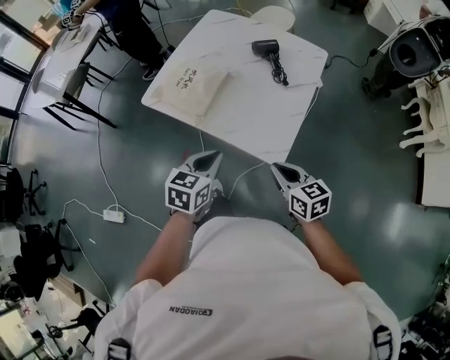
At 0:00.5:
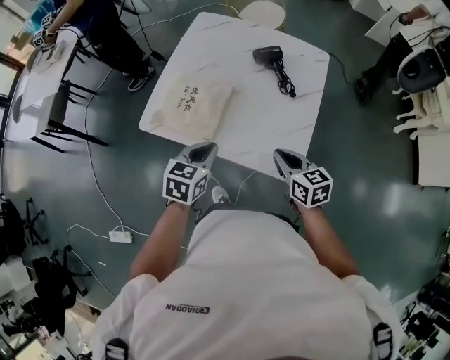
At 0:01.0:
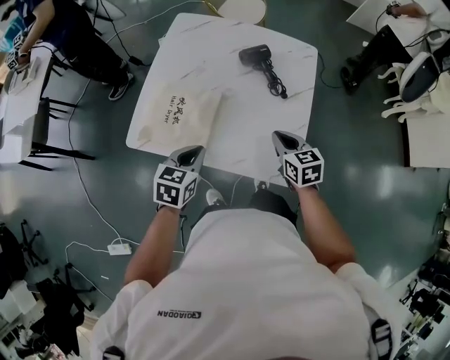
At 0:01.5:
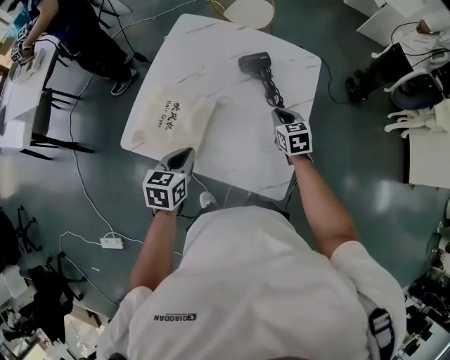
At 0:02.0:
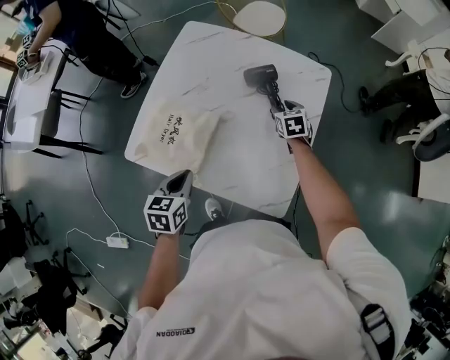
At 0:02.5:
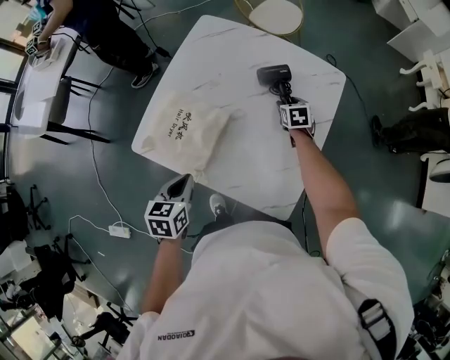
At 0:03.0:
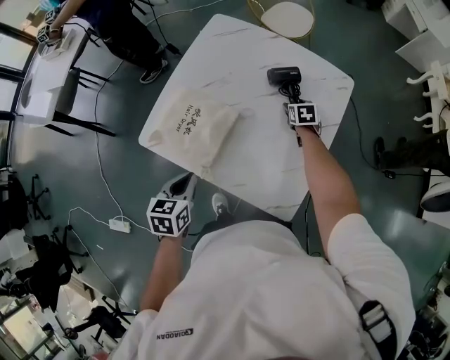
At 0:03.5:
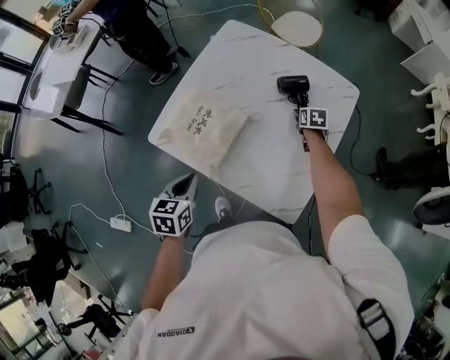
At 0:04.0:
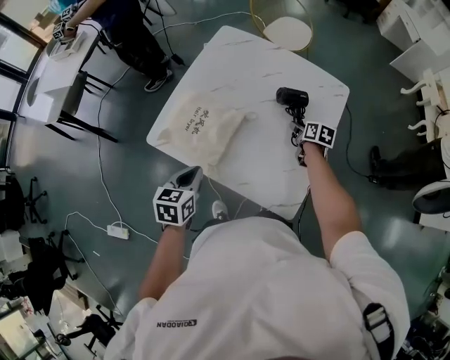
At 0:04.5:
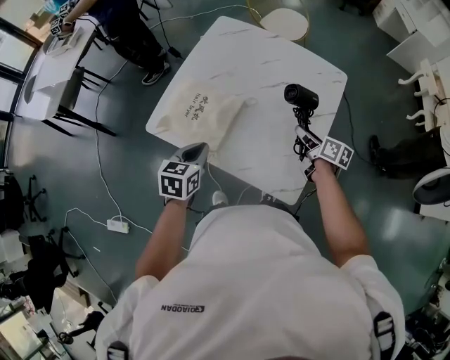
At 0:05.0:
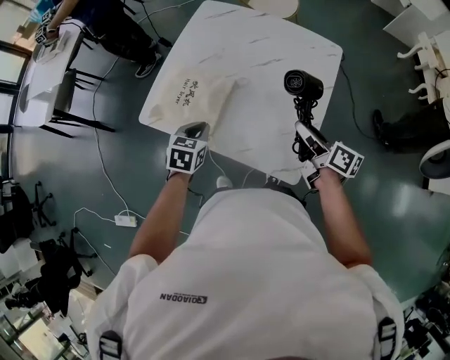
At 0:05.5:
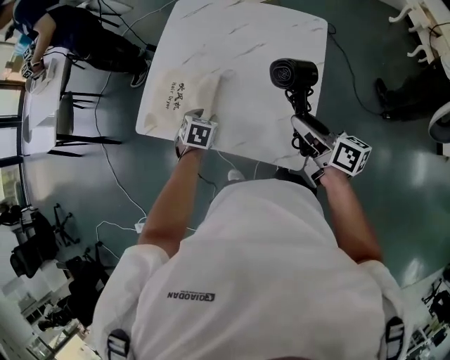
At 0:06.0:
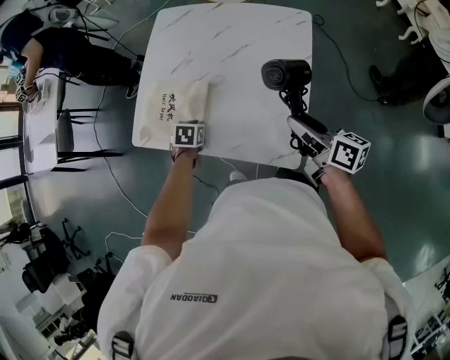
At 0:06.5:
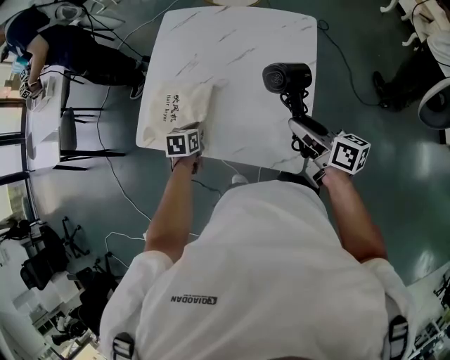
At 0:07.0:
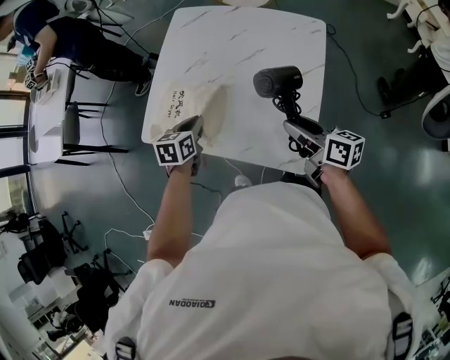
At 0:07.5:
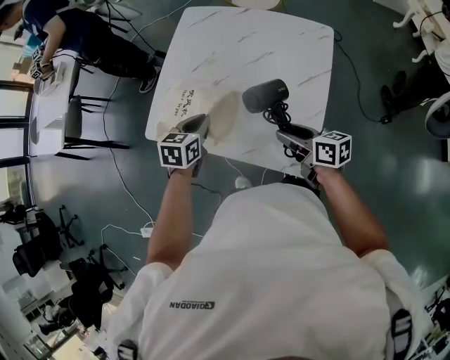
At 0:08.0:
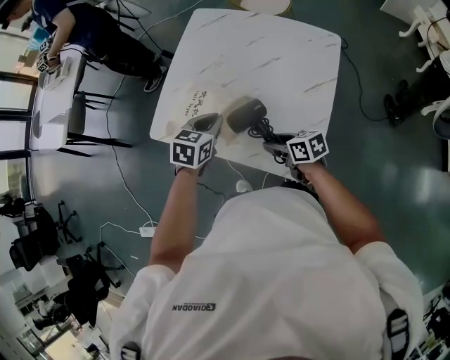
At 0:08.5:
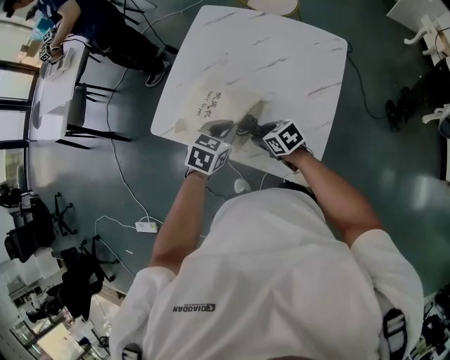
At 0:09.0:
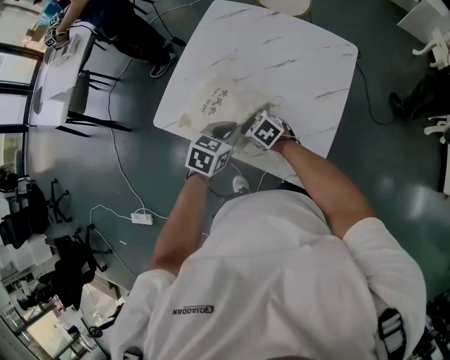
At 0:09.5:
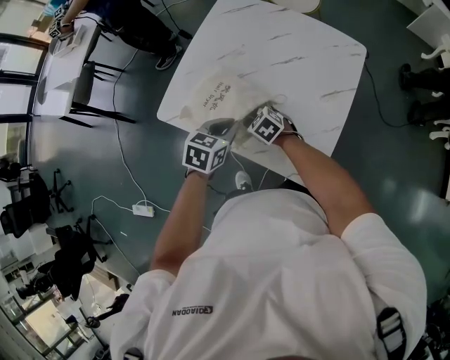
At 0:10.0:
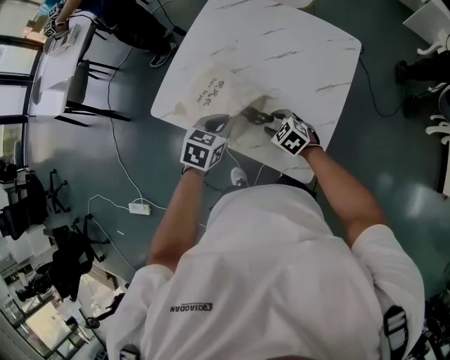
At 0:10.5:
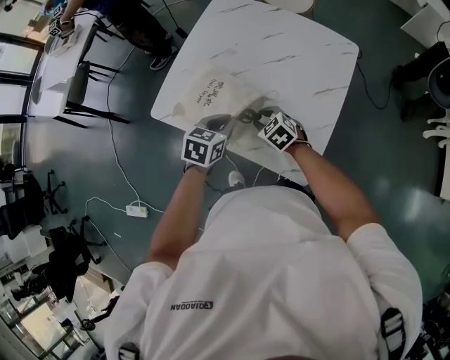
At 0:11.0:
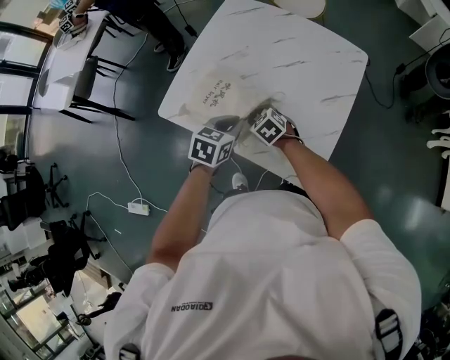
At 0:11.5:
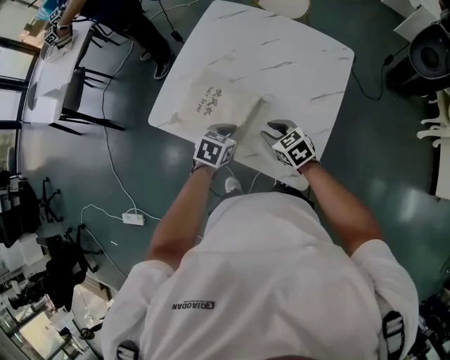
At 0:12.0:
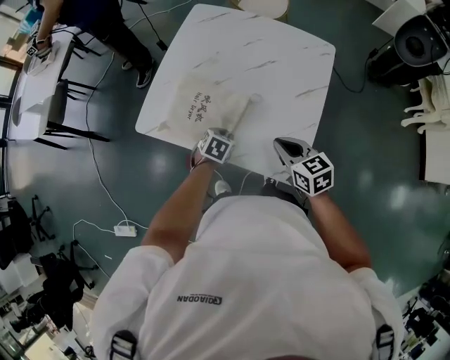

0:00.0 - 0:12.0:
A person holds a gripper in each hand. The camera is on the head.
0:00.0 - 0:02.0: The right gripper moves forward, some 50 cm, swivels roughly 30 degrees, and opens its fingers. The left gripper shifts roughly 25 cm forward and to the left.
0:02.0 - 0:04.0: The right gripper moves approximately 5 cm, and turns by some 30 degrees; the left gripper moves about 5 cm.
0:04.0 - 0:06.0: The left gripper goes approximately 20 cm downward and forward, and changes its angle by roughly 30 degrees. The right gripper heads backward and upward, covering approximately 30 cm, and angles its fingers upward, by some 30 degrees.
0:06.0 - 0:08.0: The left gripper goes some 15 cm upward, and rotates some 20 degrees. The right gripper goes roughly 20 cm downward and to the left, and swivels about 40 degrees.
0:08.0 - 0:10.0: The right gripper shifts some 5 cm downward, and rotates around the line of its fingers by roughly 50 degrees, counterclockwise from behind.
0:10.0 - 0:12.0: The right gripper heads upward and backward, covering about 15 cm, changes its angle by approximately 40 degrees, and closes its fingers. The left gripper travels downward by roughly 15 cm.

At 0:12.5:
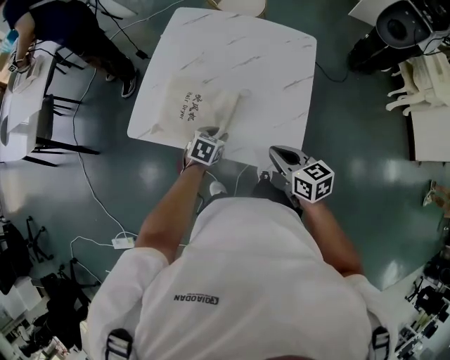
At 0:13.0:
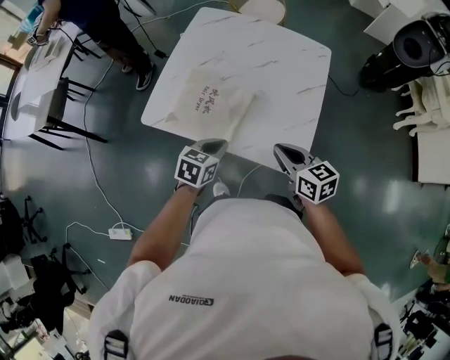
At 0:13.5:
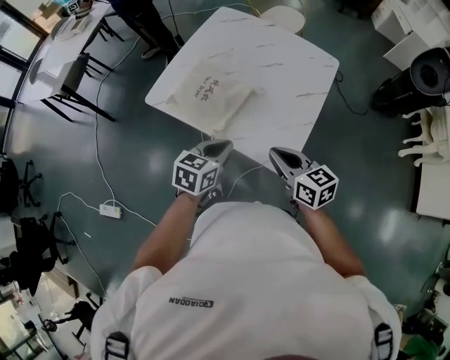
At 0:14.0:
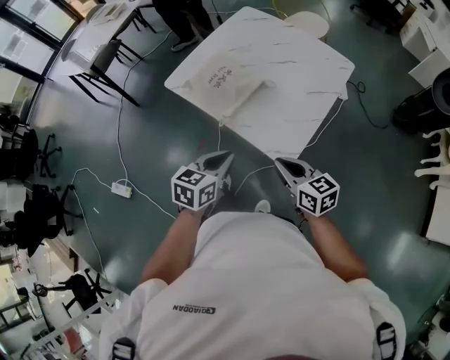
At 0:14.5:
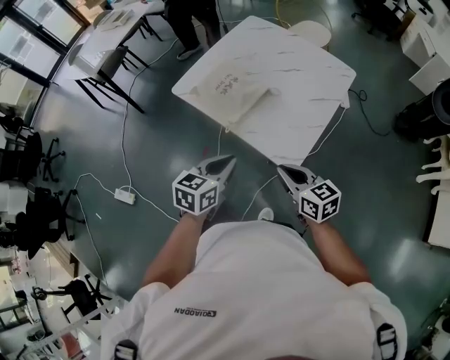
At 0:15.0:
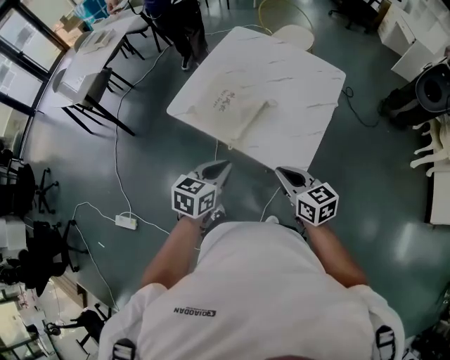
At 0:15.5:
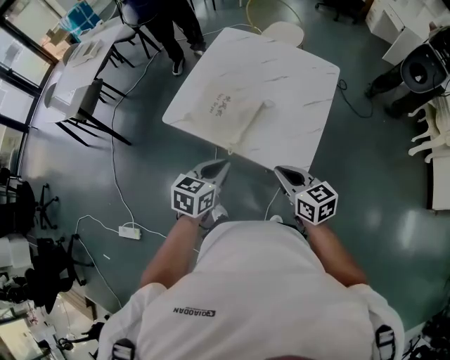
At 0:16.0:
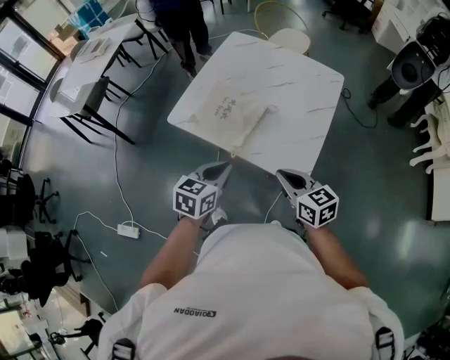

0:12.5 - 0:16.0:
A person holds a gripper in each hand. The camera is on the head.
0:12.5 - 0:14.5: The left gripper shifts approximately 30 cm backward and upward, swivels approximately 40 degrees, and closes its fingers; the right gripper goes roughly 15 cm backward, and rotates roughly 20 degrees.
0:14.5 - 0:16.0: The right gripper shifts approximately 5 cm to the left, while the left gripper travels forward and to the left by some 10 cm.

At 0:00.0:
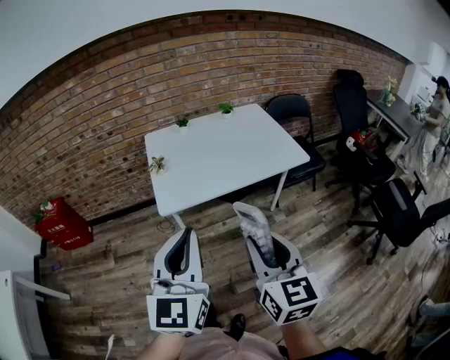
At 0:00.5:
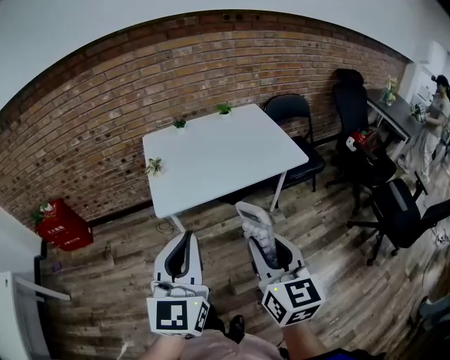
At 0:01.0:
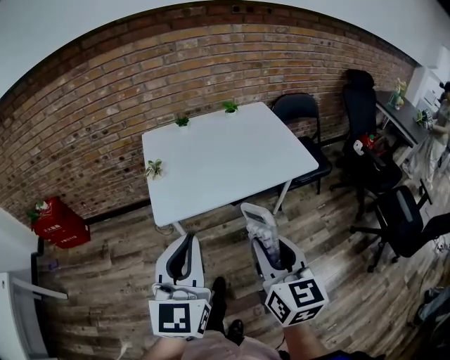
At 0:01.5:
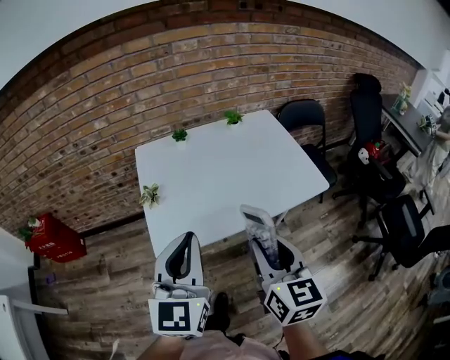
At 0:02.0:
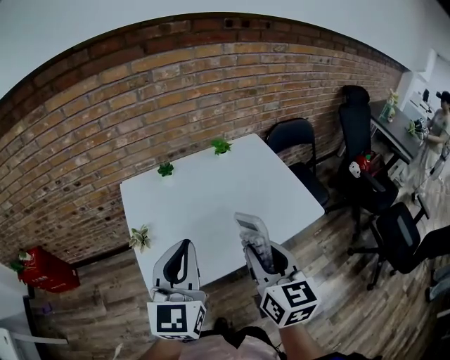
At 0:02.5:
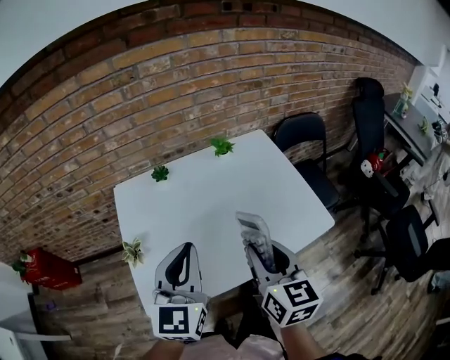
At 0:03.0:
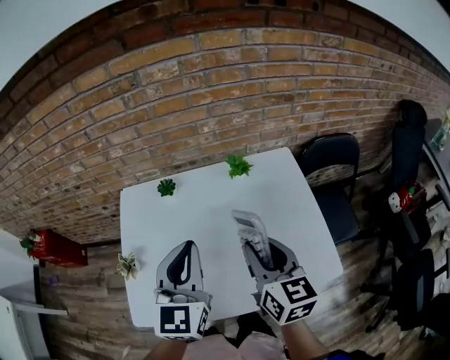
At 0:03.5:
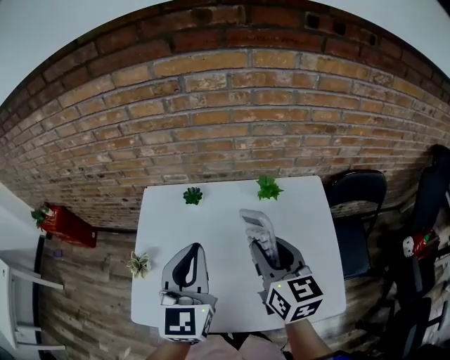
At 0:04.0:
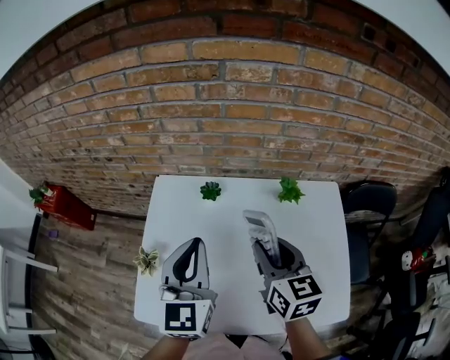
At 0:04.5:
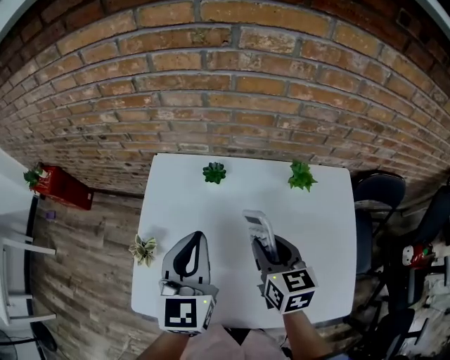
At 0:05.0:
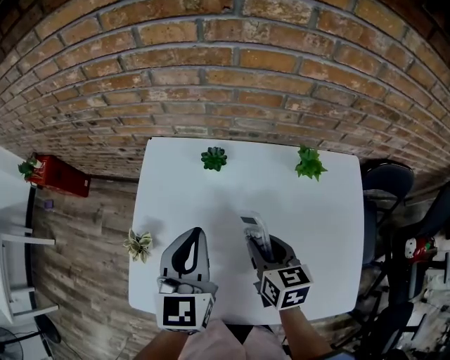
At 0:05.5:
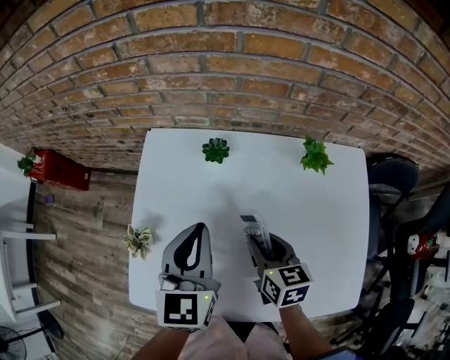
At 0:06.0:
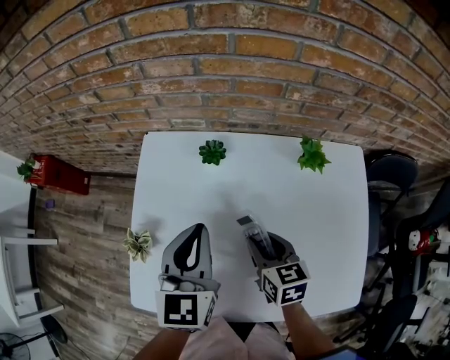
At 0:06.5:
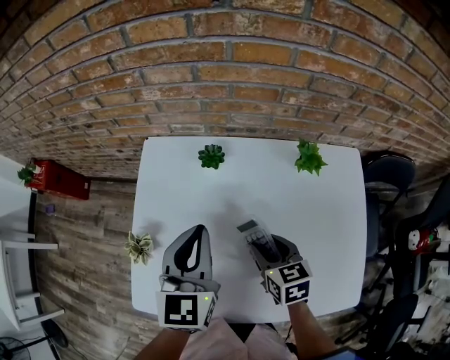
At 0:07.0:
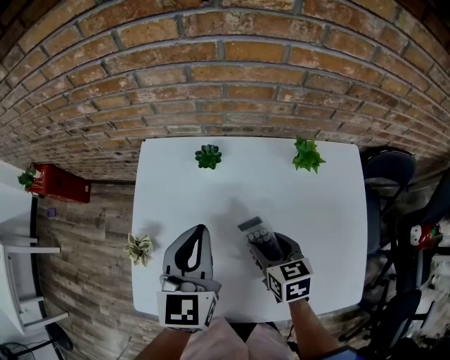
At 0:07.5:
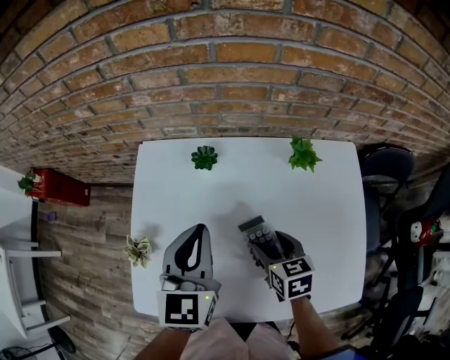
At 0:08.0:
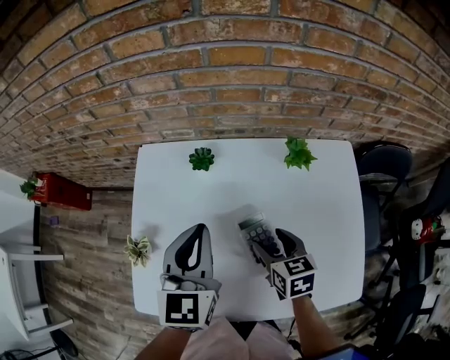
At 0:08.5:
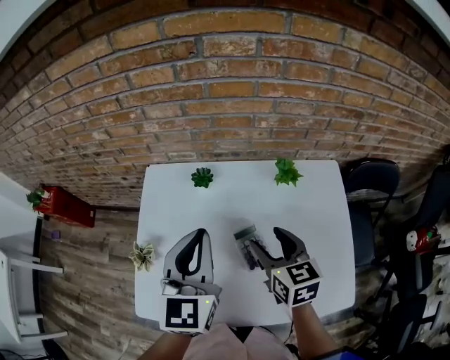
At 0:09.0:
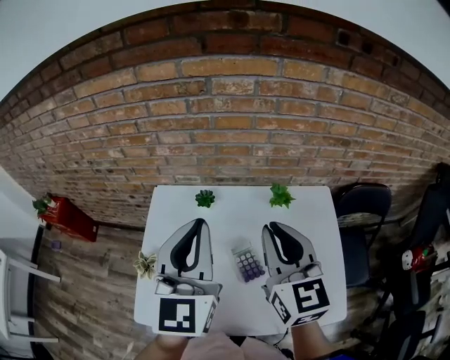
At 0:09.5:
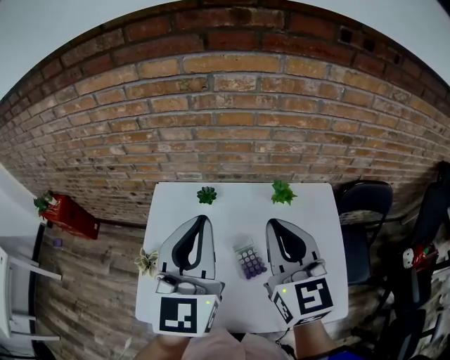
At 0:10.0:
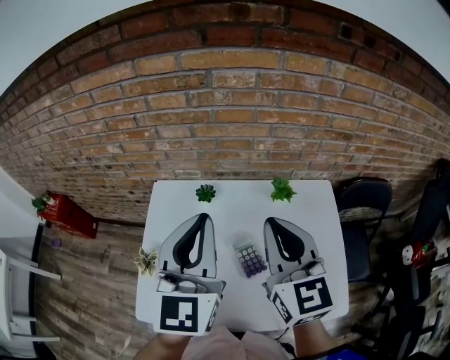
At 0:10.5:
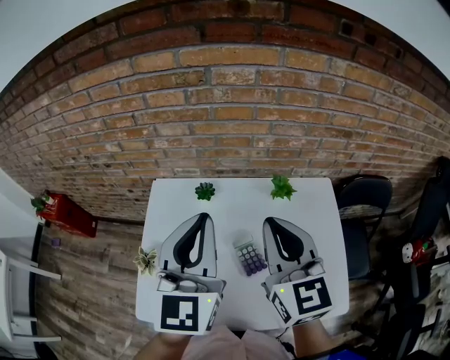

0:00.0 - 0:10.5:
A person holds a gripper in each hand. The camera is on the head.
0:00.0 - 0:02.0: Both grippers travel together forward, about 35 cm.
0:02.0 - 0:04.0: The left gripper changes place by about 25 cm, and rotates roughly 30 degrees, while the right gripper ends up about 30 cm from where it was, and rotates roughly 30 degrees.
0:04.0 - 0:06.5: The left gripper shifts about 10 cm downward. Meanwhile the right gripper travels downward by some 20 cm, and changes its angle by some 20 degrees.
0:06.5 - 0:08.5: Both grippers move upward, about 10 cm.
0:08.5 - 0:10.5: The left gripper goes about 10 cm upward; the right gripper heads upward, covering about 20 cm, rotates some 30 degrees, and closes its fingers.
